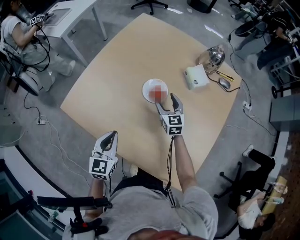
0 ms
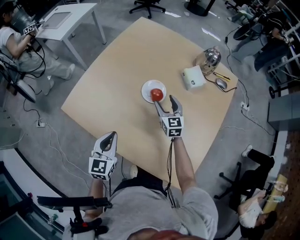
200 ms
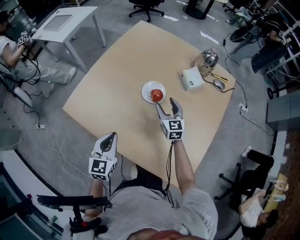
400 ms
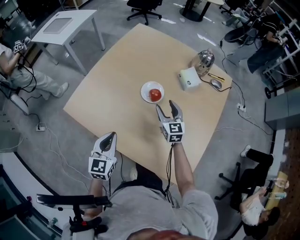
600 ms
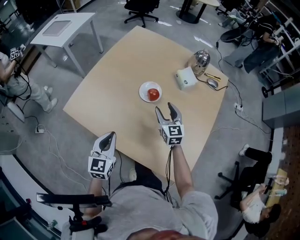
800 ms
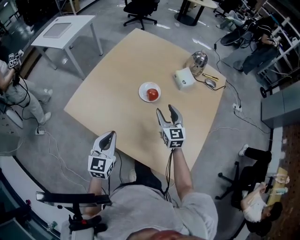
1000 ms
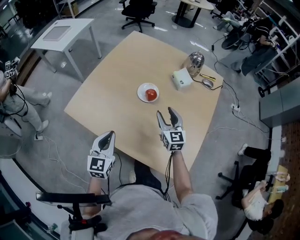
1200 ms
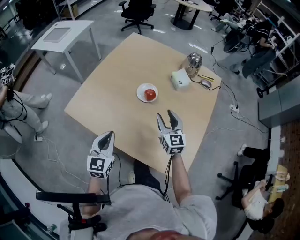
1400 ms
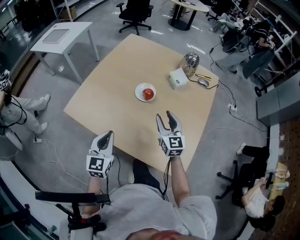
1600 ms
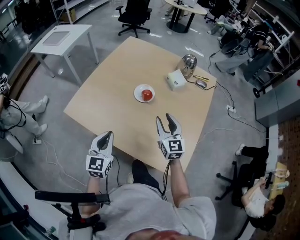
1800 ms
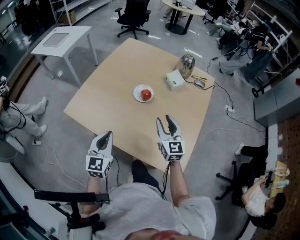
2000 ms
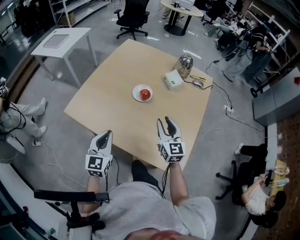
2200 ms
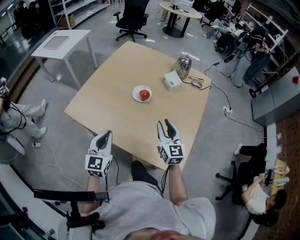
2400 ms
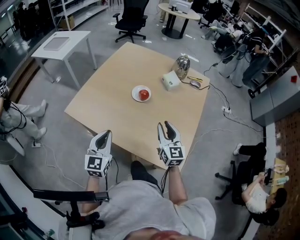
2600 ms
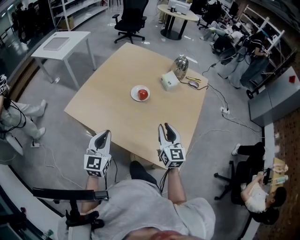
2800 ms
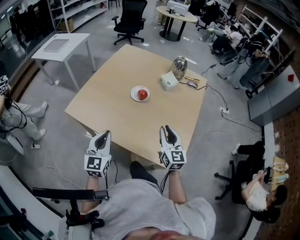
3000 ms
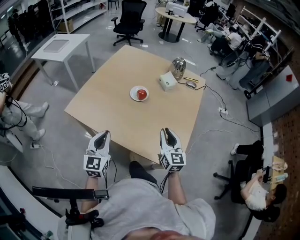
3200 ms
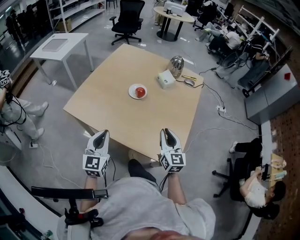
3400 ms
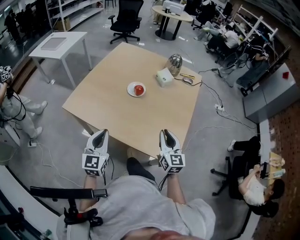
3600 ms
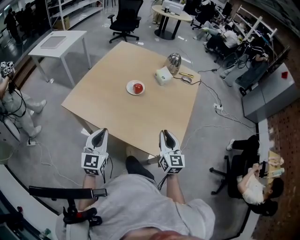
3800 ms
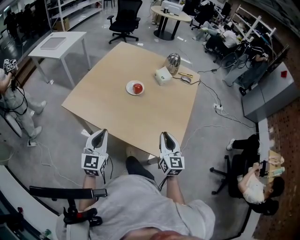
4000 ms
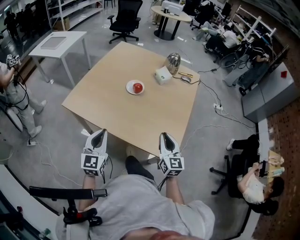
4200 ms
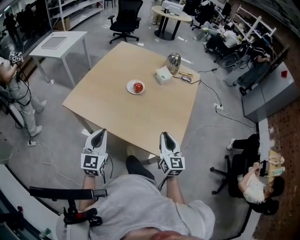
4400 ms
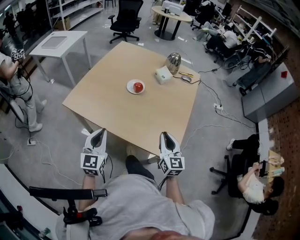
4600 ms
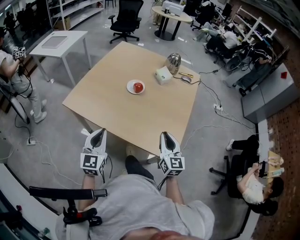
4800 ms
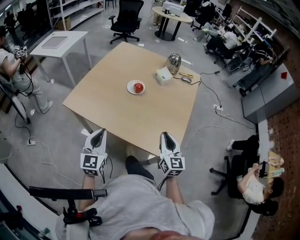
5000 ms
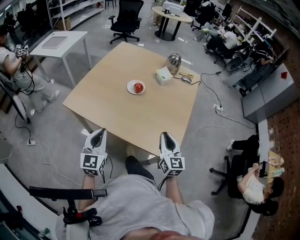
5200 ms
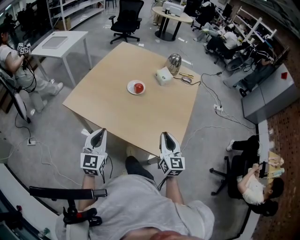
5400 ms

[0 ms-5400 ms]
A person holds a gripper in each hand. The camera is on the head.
0 ms to 1400 ms: The left gripper travels backward and upward by approximately 10 cm; the right gripper shifts about 20 cm backward and upward.
1400 ms to 2800 ms: The left gripper goes some 10 cm backward and upward. The right gripper travels backward and upward by some 15 cm.
2800 ms to 4000 ms: The left gripper travels backward by some 5 cm. The right gripper goes about 10 cm backward.
4000 ms to 5400 ms: The grippers move only a little.

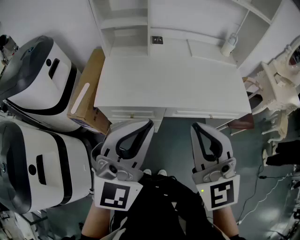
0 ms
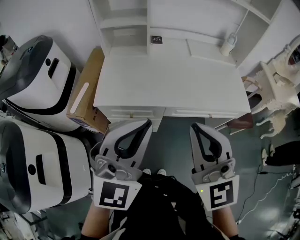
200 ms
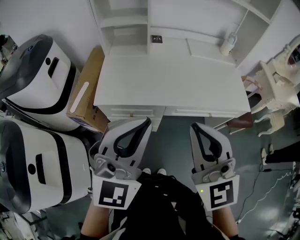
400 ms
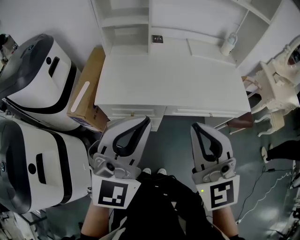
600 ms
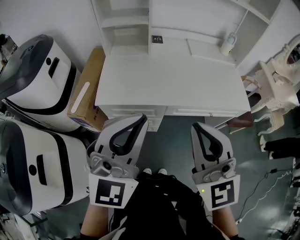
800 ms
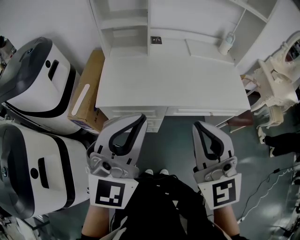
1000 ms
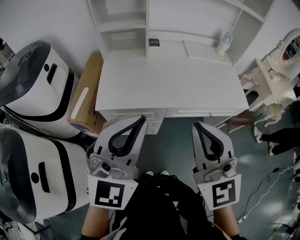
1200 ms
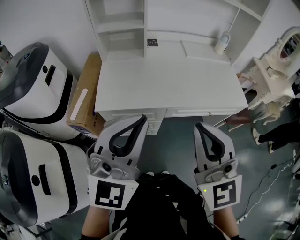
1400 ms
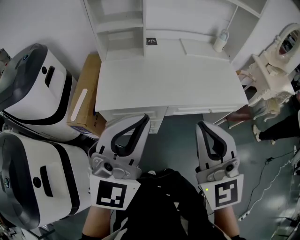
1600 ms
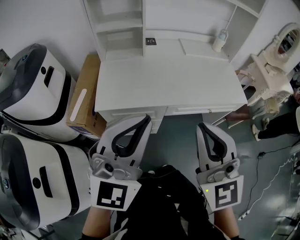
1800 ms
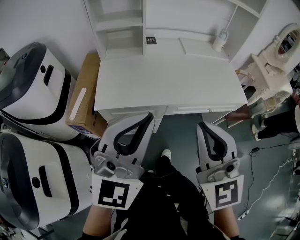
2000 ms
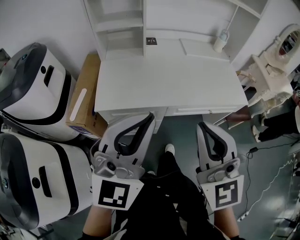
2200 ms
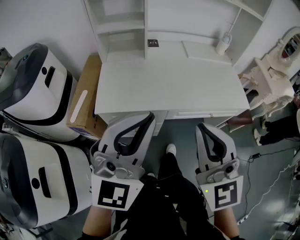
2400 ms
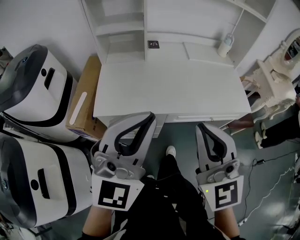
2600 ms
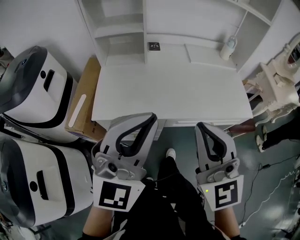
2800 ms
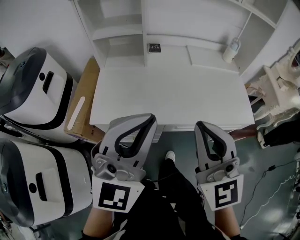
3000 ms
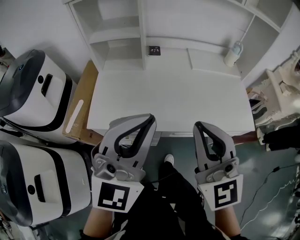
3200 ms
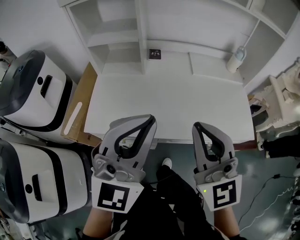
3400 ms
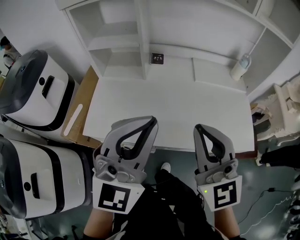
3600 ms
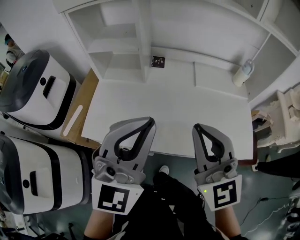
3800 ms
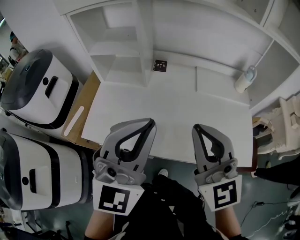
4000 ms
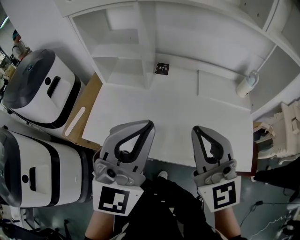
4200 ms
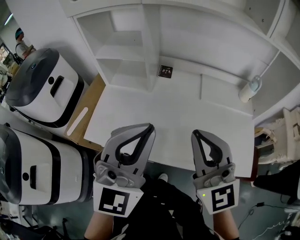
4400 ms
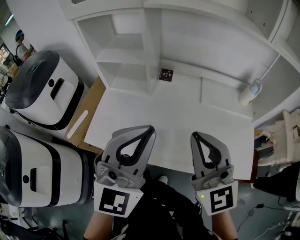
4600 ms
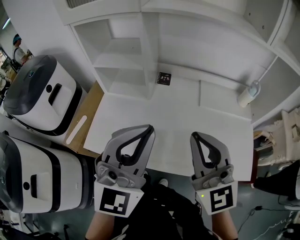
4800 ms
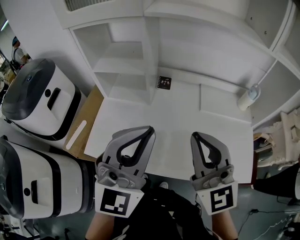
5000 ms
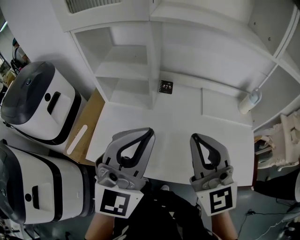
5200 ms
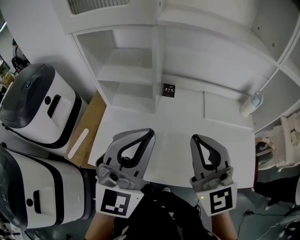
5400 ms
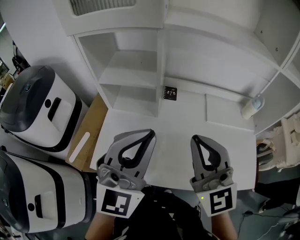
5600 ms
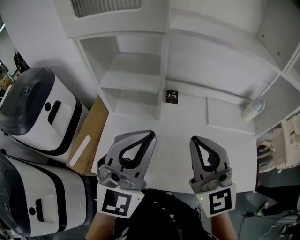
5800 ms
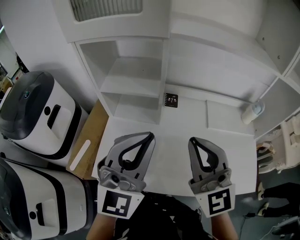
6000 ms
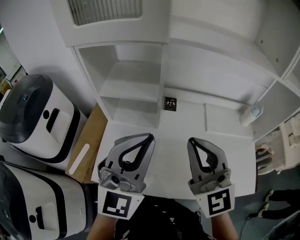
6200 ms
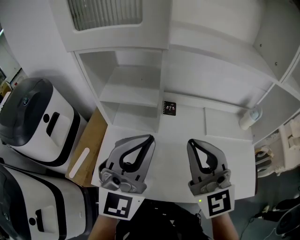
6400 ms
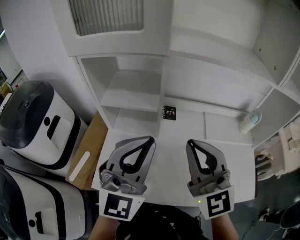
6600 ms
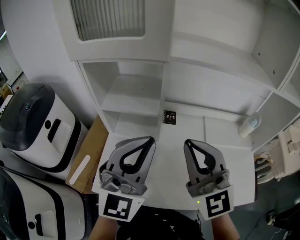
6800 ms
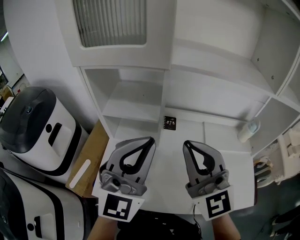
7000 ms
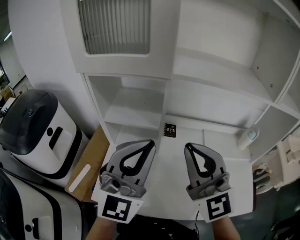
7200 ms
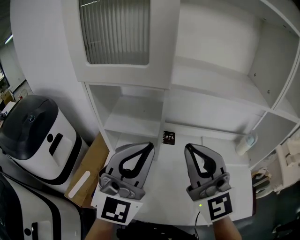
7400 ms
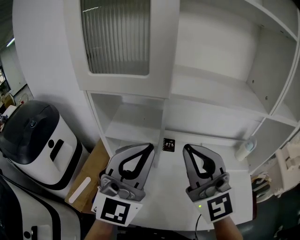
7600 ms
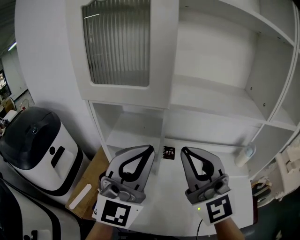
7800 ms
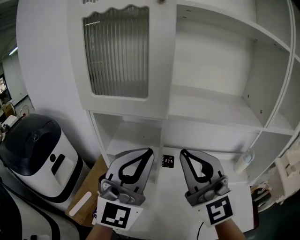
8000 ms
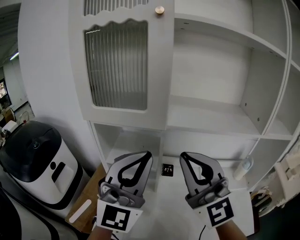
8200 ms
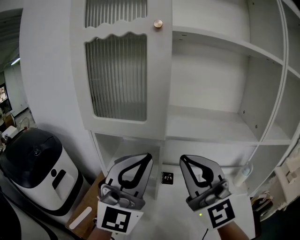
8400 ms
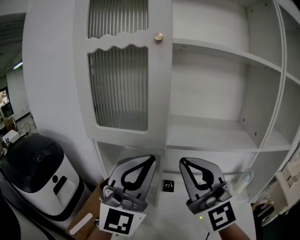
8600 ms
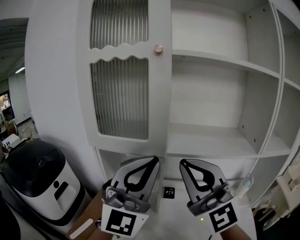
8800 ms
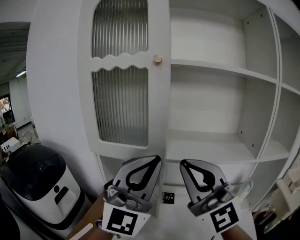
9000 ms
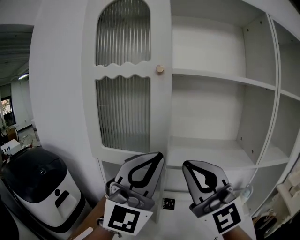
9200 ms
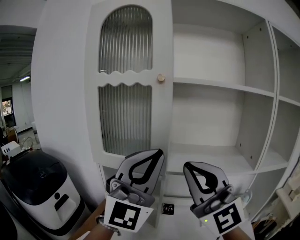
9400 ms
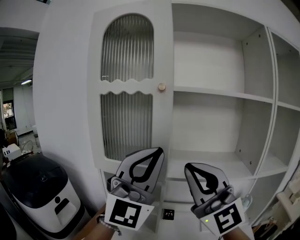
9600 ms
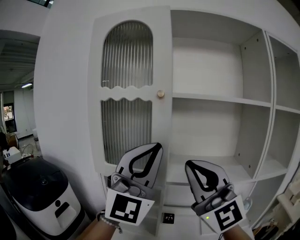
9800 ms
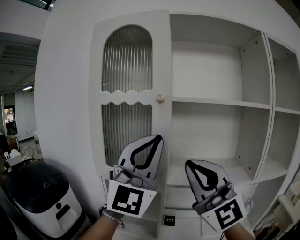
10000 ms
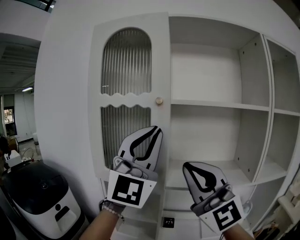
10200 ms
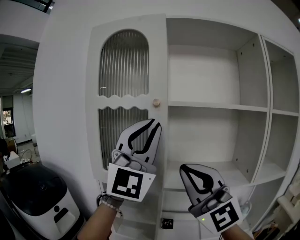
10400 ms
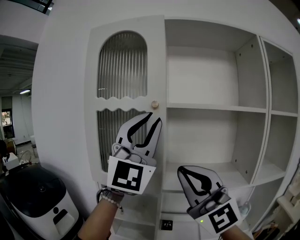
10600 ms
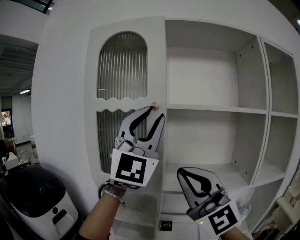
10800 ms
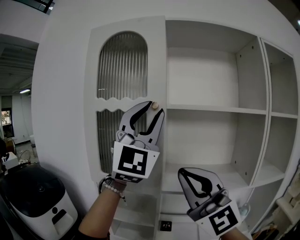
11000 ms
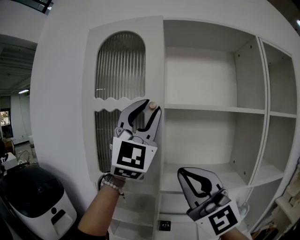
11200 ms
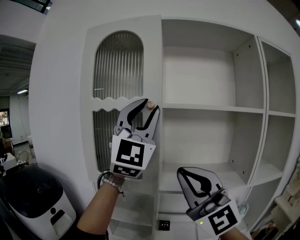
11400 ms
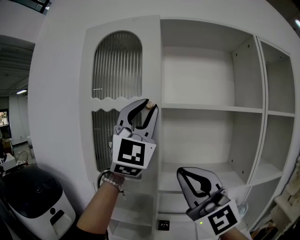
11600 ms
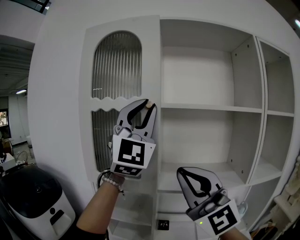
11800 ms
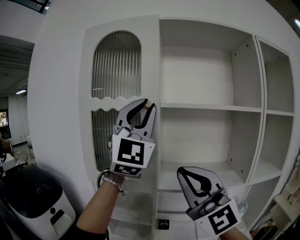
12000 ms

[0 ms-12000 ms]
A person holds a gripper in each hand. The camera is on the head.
0 ms to 1600 ms: The grippers move only a little.
1600 ms to 3000 ms: Both grippers travel together forward, roughly 10 cm.
3000 ms to 4400 ms: The grippers both shift forward and to the right by roughly 20 cm.
4400 ms to 6000 ms: The two grippers go some 15 cm forward and to the left.
6000 ms to 7600 ms: Both grippers travel together upward, roughly 10 cm.
7600 ms to 9000 ms: Both grippers move upward, approximately 15 cm.
9000 ms to 10400 ms: The left gripper shifts roughly 15 cm upward. The right gripper is displaced upward by approximately 5 cm.
10400 ms to 12000 ms: The left gripper travels upward and forward by some 5 cm.

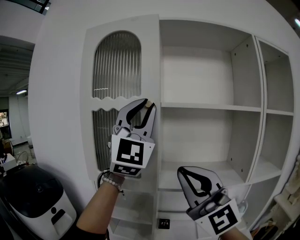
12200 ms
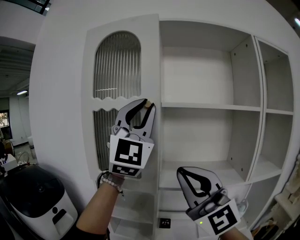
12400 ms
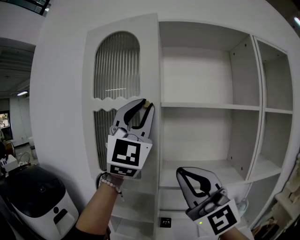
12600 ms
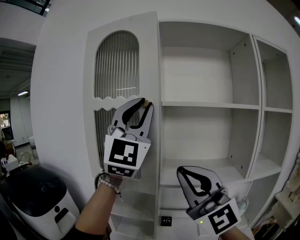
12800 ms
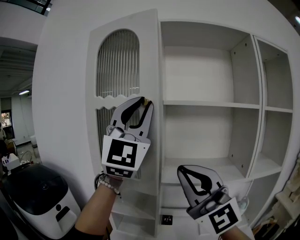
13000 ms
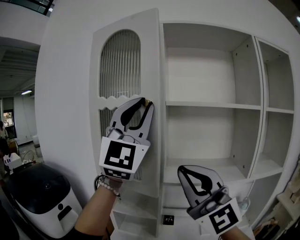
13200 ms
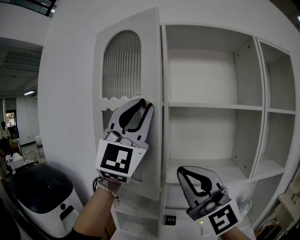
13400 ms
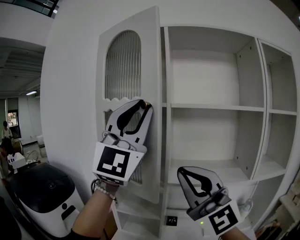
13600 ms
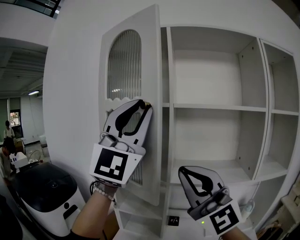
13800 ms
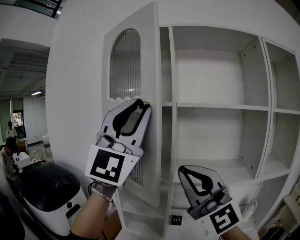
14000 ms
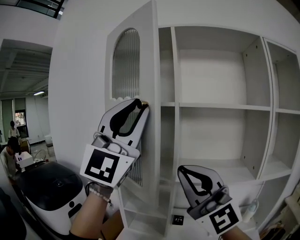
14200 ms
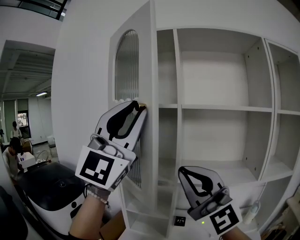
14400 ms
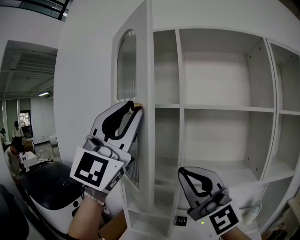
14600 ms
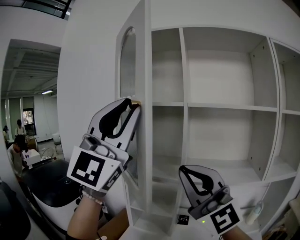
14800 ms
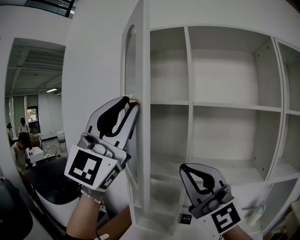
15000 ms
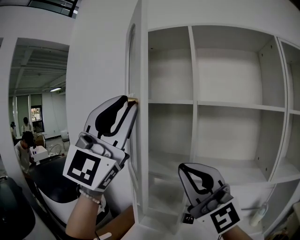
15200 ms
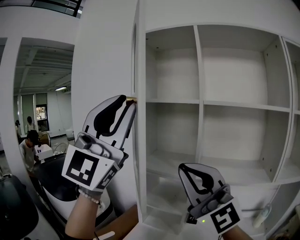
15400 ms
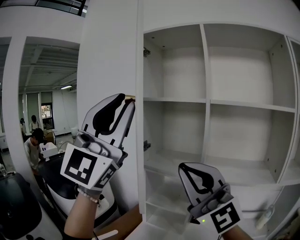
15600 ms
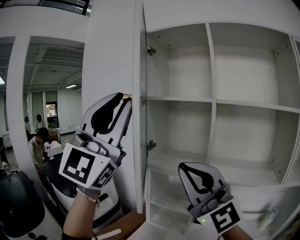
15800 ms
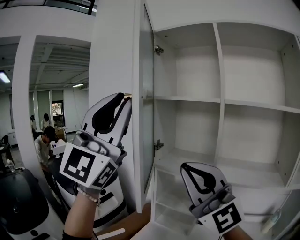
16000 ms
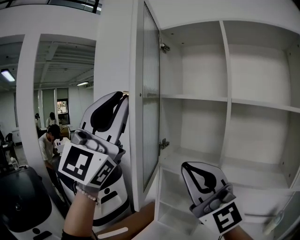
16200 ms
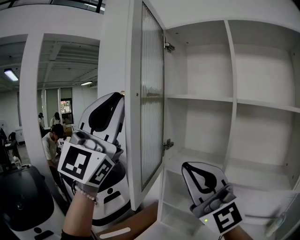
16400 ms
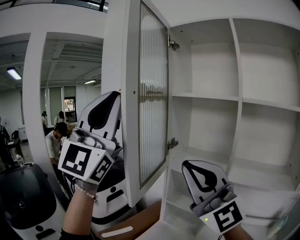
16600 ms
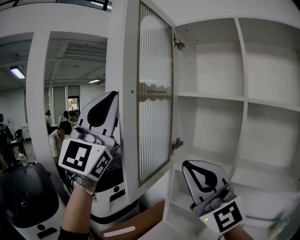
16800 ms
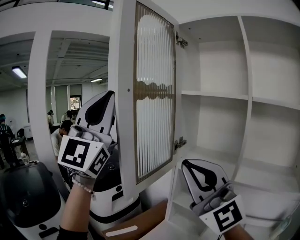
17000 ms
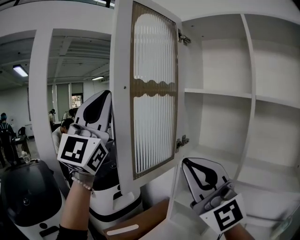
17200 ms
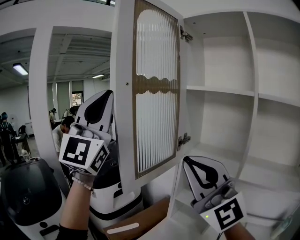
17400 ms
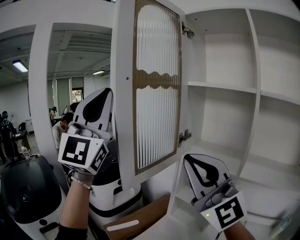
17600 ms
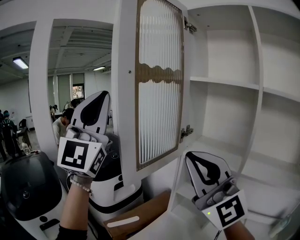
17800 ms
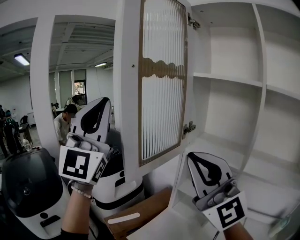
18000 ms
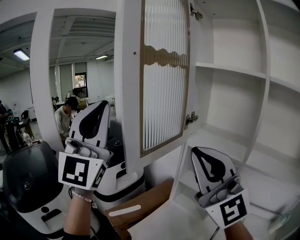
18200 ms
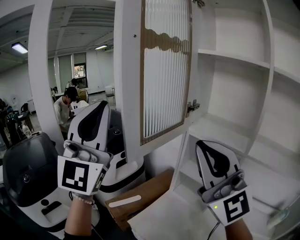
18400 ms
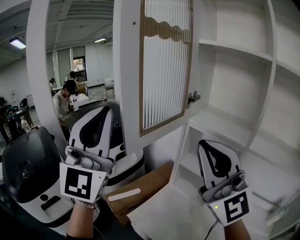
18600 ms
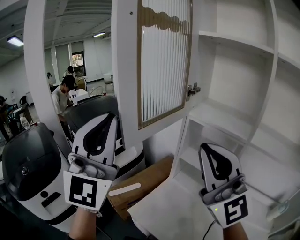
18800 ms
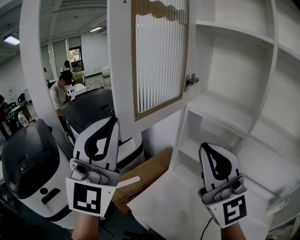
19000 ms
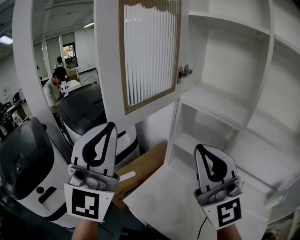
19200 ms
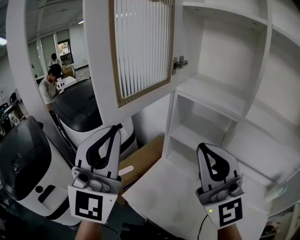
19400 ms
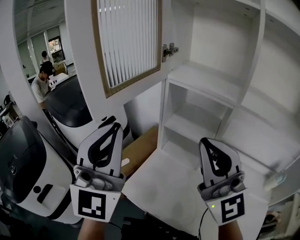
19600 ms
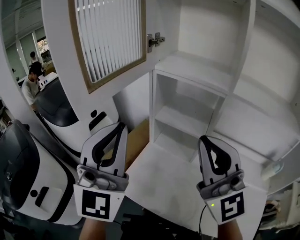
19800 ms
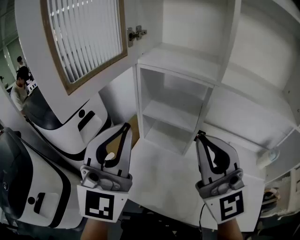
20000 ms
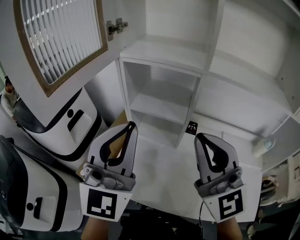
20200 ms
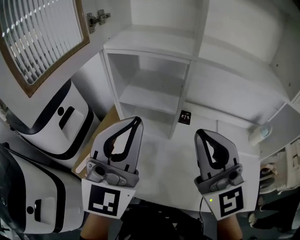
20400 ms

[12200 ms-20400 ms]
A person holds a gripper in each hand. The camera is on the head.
12200 ms to 13800 ms: The left gripper moves backward and to the left, some 10 cm; the right gripper changes place by roughly 5 cm.
13800 ms to 15400 ms: The left gripper heads to the left and backward, covering some 10 cm. The right gripper moves to the left, roughly 5 cm.
15400 ms to 17200 ms: The right gripper ends up about 10 cm from where it was; the left gripper shifts by about 20 cm, and rotates roughly 20 degrees.
17200 ms to 18800 ms: The left gripper shifts approximately 20 cm downward, while the right gripper goes some 10 cm downward.
18800 ms to 20400 ms: The right gripper ends up about 20 cm from where it was, and changes its angle by some 30 degrees. The left gripper moves roughly 30 cm, and changes its angle by approximately 40 degrees.
